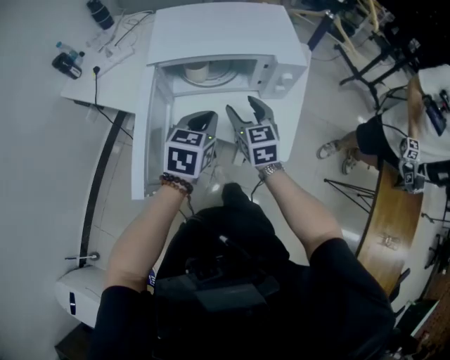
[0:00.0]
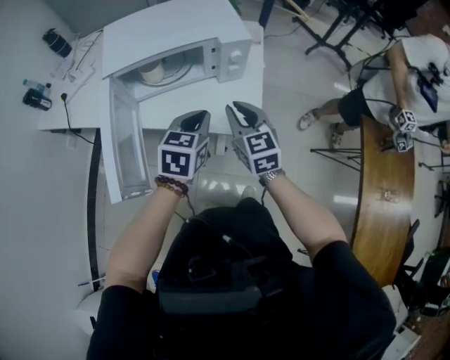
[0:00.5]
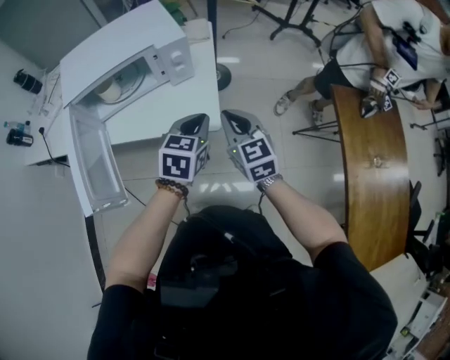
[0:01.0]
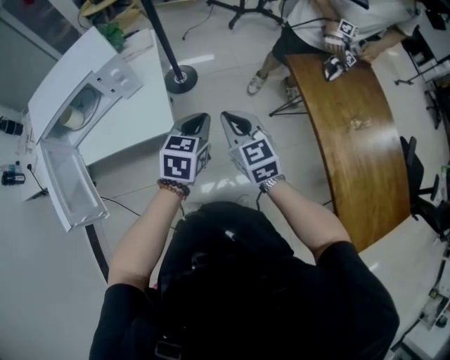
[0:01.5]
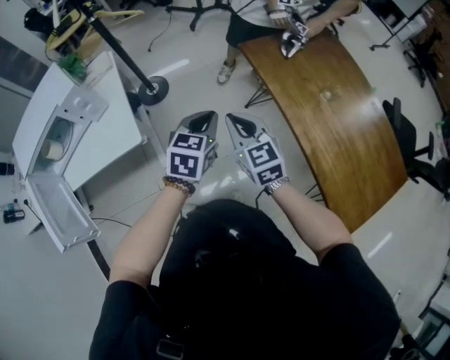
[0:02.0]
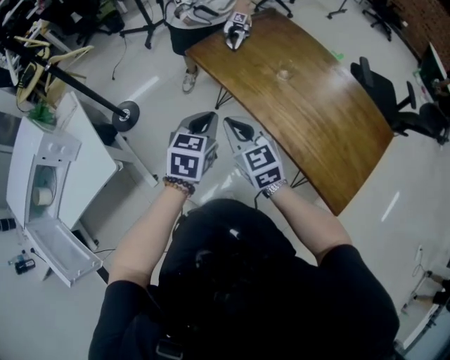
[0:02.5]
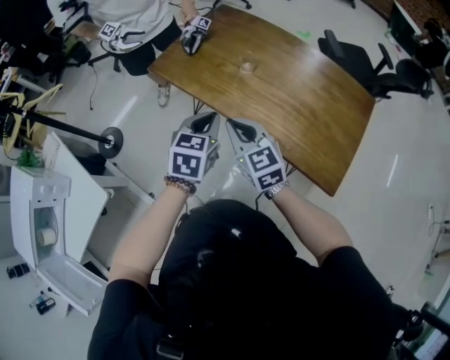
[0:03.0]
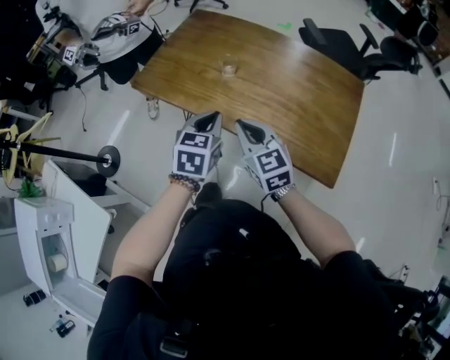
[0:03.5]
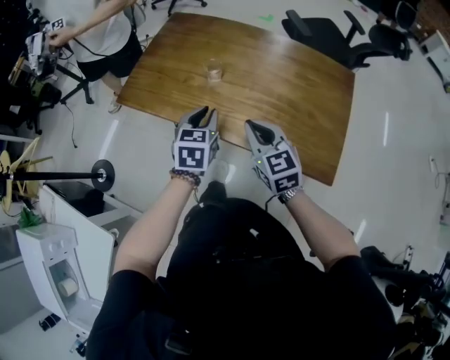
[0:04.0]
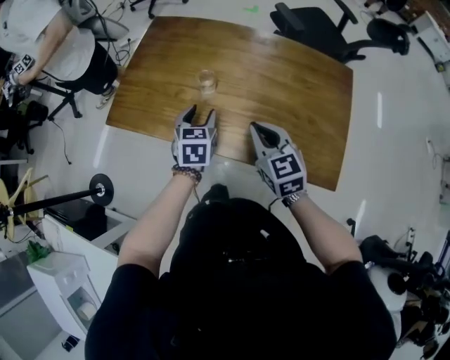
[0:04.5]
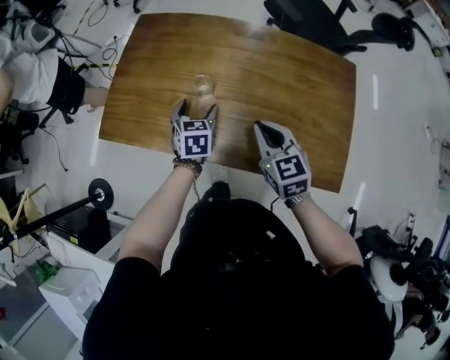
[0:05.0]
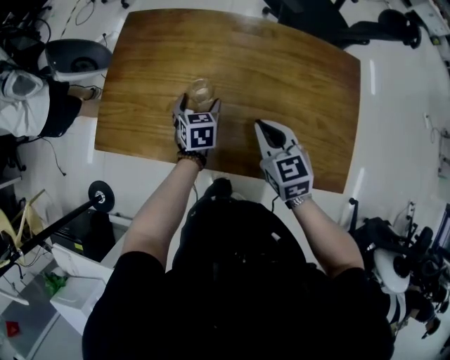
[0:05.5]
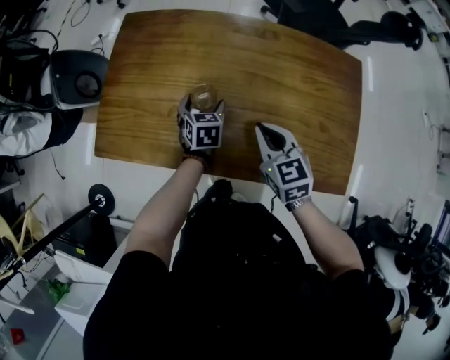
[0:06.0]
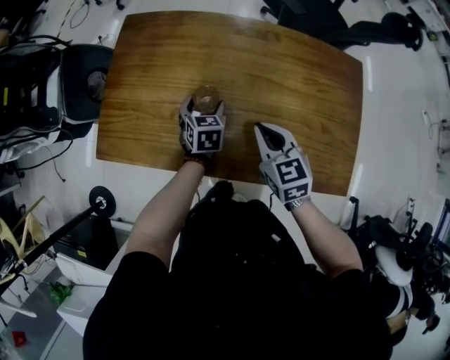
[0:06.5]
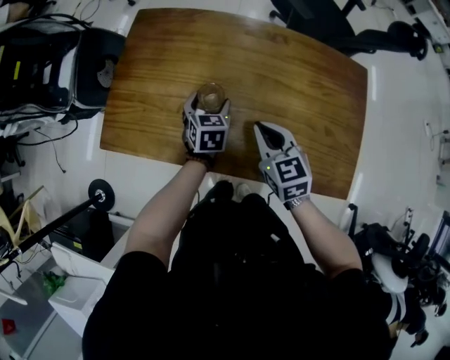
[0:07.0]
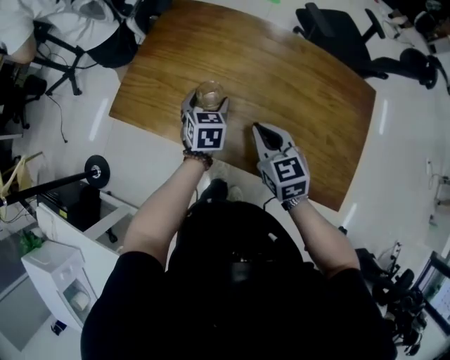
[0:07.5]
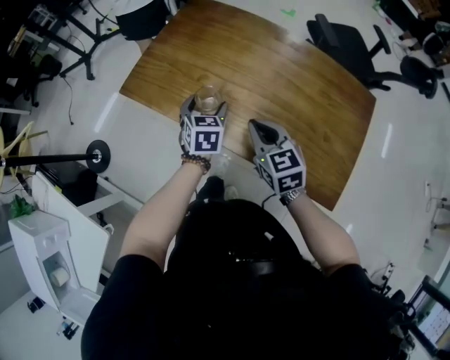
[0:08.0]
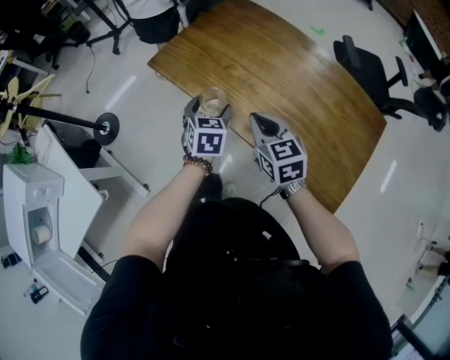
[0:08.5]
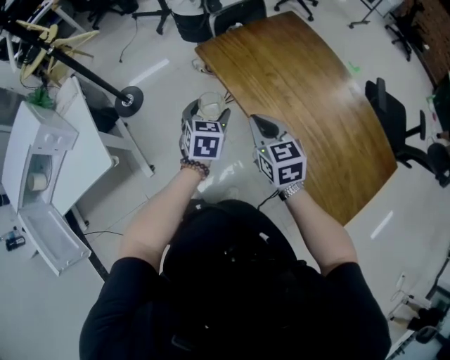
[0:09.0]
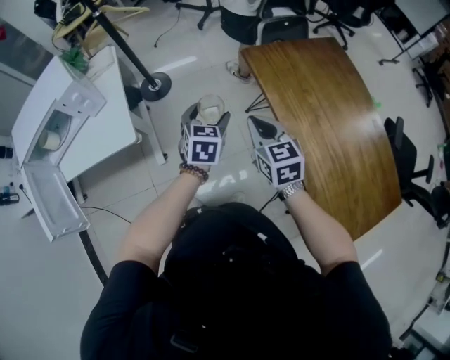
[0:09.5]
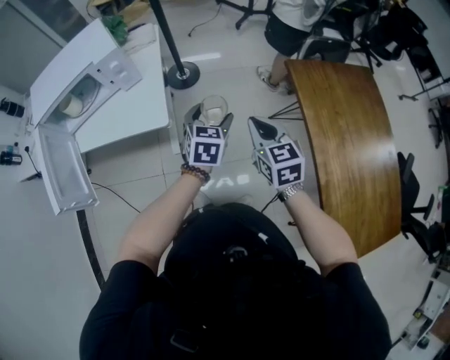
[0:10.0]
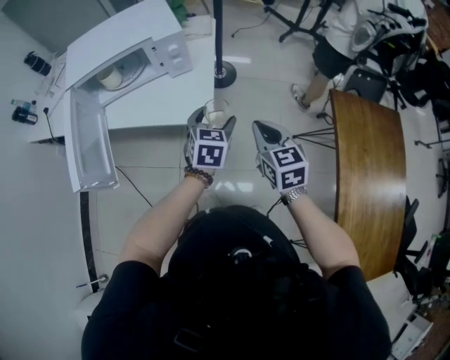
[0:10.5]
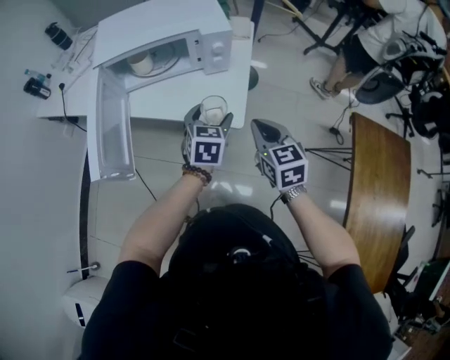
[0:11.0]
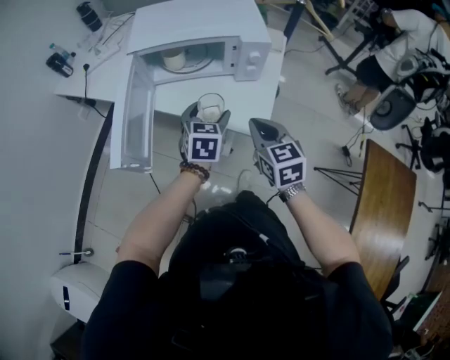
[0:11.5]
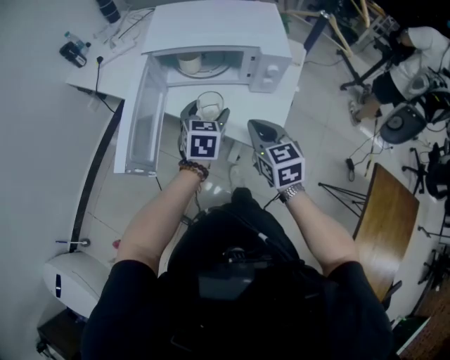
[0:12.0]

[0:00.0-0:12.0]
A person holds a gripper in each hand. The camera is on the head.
0:00.0 to 0:02.0: Both grippers are carried approximately 60 cm. The right gripper swivels about 30 degrees, and closes. The left gripper swivels approximately 50 degrees.
0:02.0 to 0:04.0: The left gripper ends up about 35 cm from where it was, and turns by some 40 degrees. Meanwhile the right gripper changes place by approximately 35 cm, and swivels roughly 50 degrees.
0:04.0 to 0:06.0: The left gripper moves forward and downward, approximately 25 cm, and opens its fingers. The right gripper shifts about 15 cm forward and downward.
0:06.0 to 0:08.0: The left gripper is displaced backward, to the left and upward by approximately 15 cm. The right gripper goes roughly 10 cm to the left and backward, and changes its angle by some 20 degrees.
0:08.0 to 0:10.0: The two grippers travel together, roughly 40 cm. The left gripper rotates approximately 50 degrees; the right gripper rotates approximately 50 degrees.
0:10.0 to 0:12.0: The two grippers travel together, about 40 cm. The left gripper turns by roughly 40 degrees, while the right gripper rotates approximately 40 degrees.

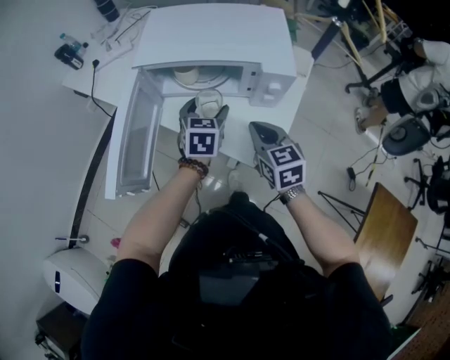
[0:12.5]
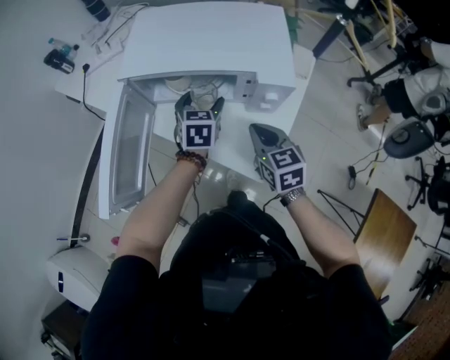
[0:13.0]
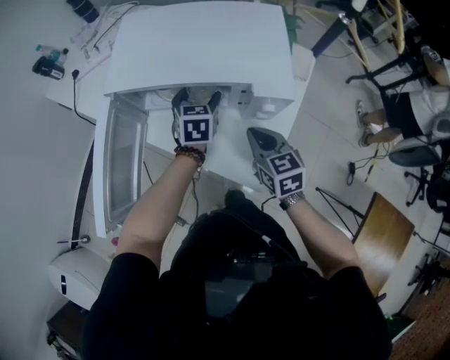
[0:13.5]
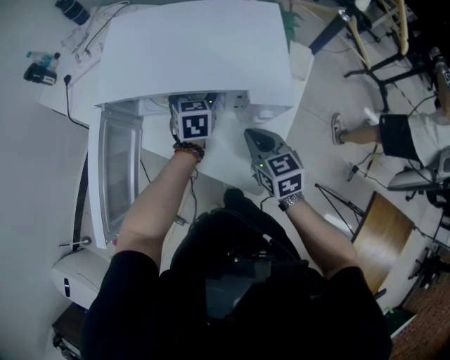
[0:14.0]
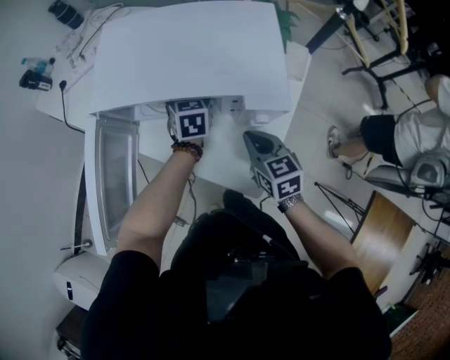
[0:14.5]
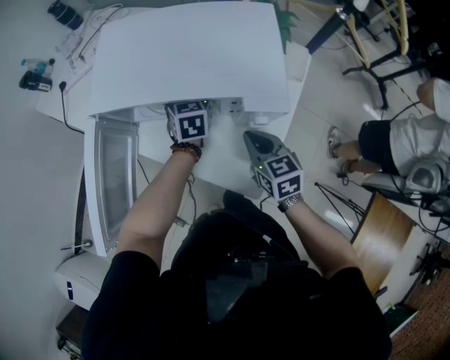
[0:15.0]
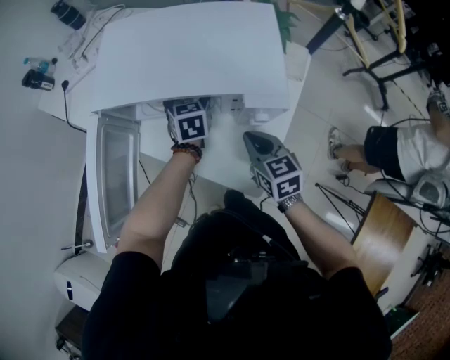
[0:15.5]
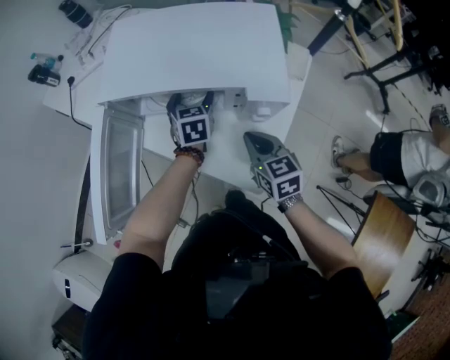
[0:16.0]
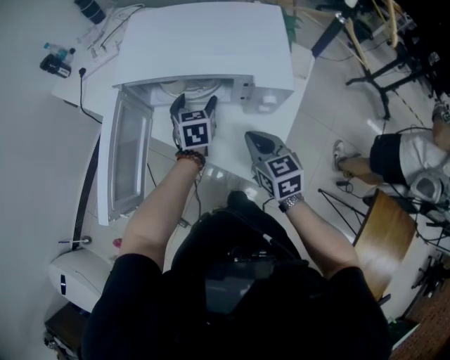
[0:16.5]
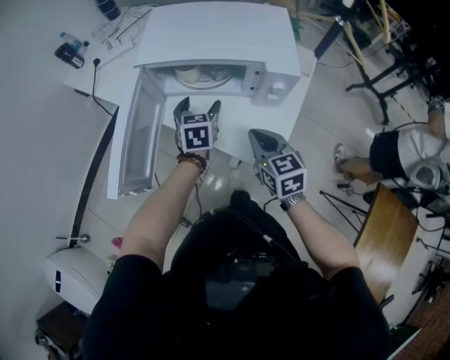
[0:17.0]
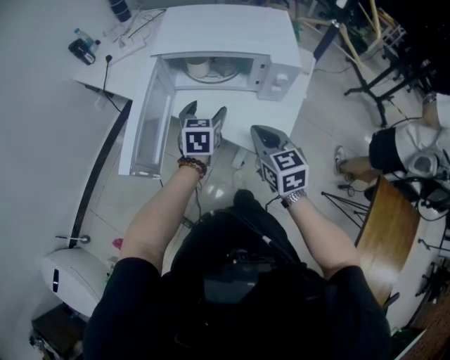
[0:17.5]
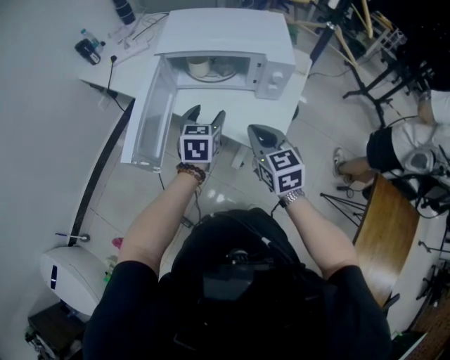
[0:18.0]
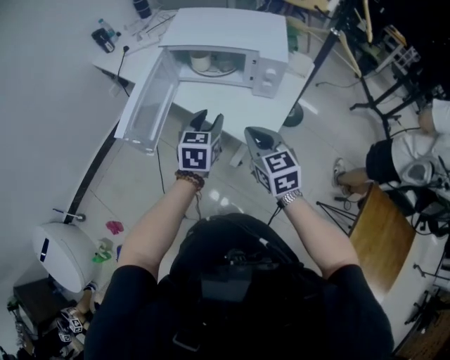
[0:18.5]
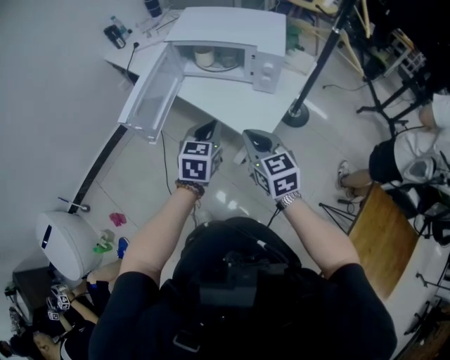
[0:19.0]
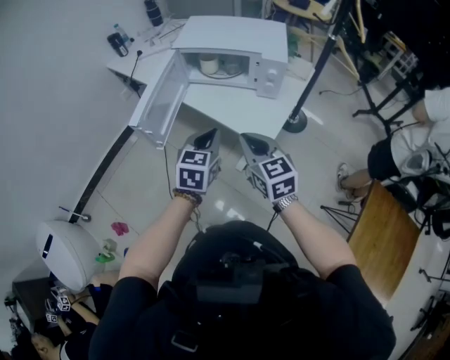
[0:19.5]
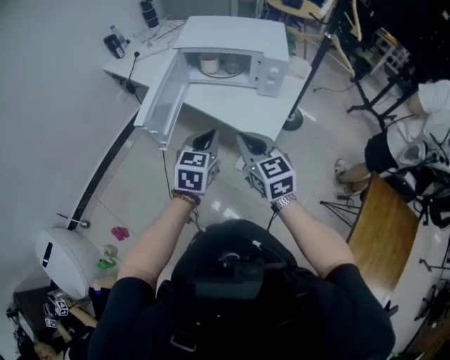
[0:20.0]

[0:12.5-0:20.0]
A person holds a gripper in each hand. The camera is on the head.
0:12.5 to 0:14.5: The left gripper goes approximately 15 cm forward and downward; the right gripper travels forward, downward and to the right by approximately 10 cm.
0:14.5 to 0:16.5: The left gripper moves backward, some 5 cm. Meanwhile the right gripper ends up about 5 cm from where it was.
0:16.5 to 0:18.0: The right gripper travels backward, upward and to the left by some 15 cm, while the left gripper travels backward and upward by about 20 cm.
0:18.0 to 0:20.0: The right gripper travels backward by some 10 cm, while the left gripper heads backward, covering approximately 15 cm, and closes up.

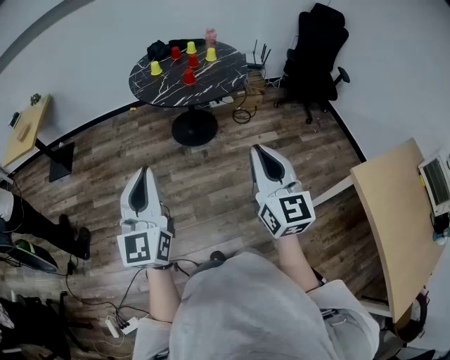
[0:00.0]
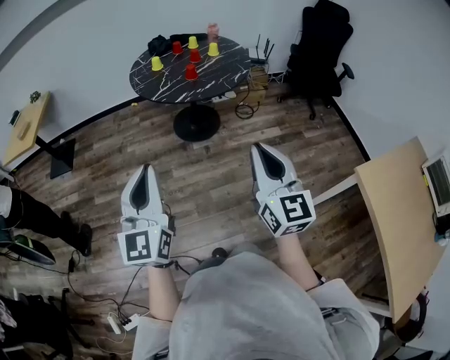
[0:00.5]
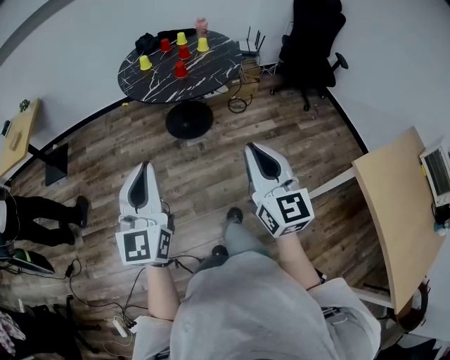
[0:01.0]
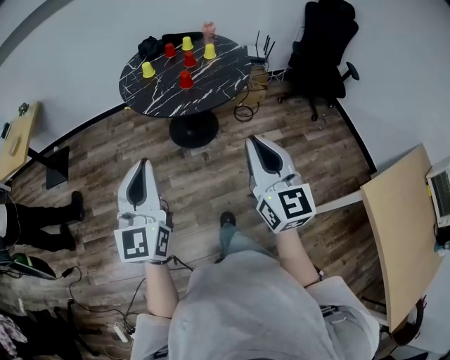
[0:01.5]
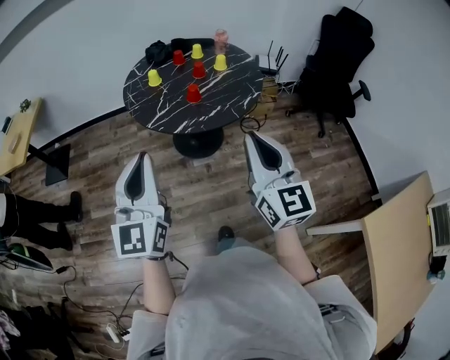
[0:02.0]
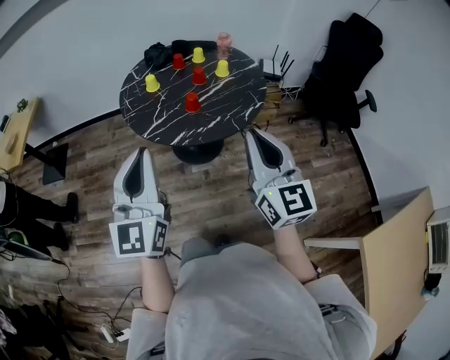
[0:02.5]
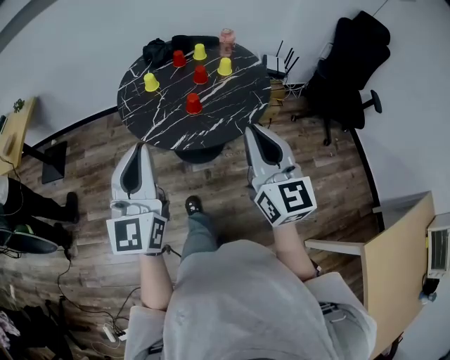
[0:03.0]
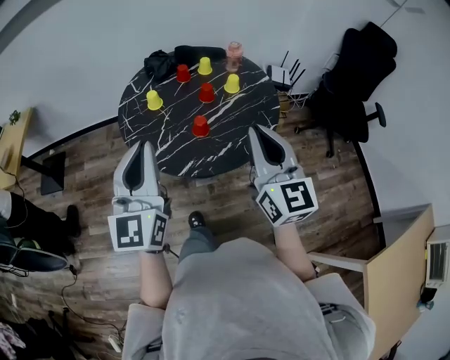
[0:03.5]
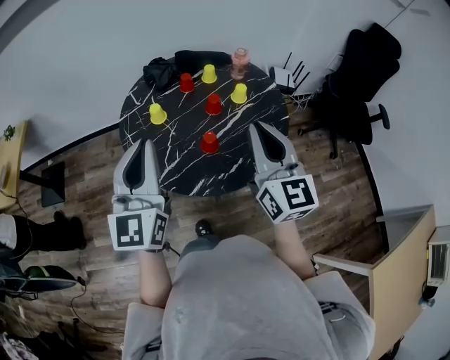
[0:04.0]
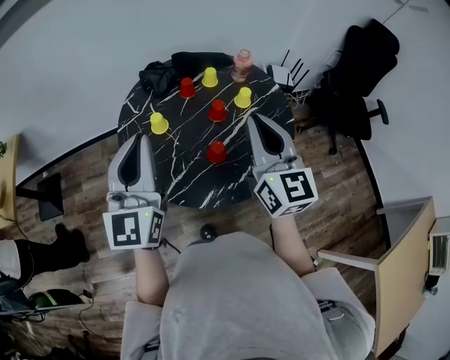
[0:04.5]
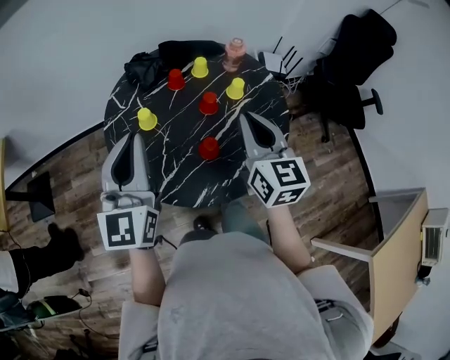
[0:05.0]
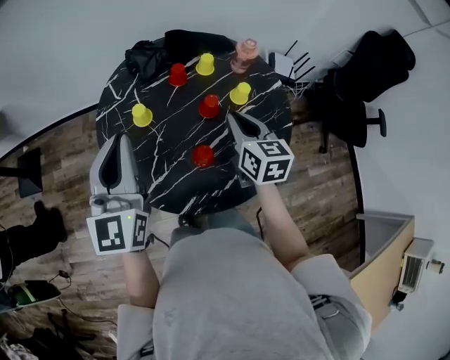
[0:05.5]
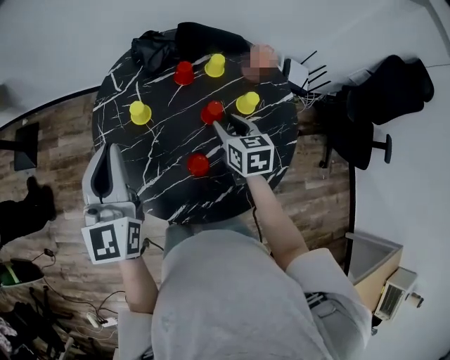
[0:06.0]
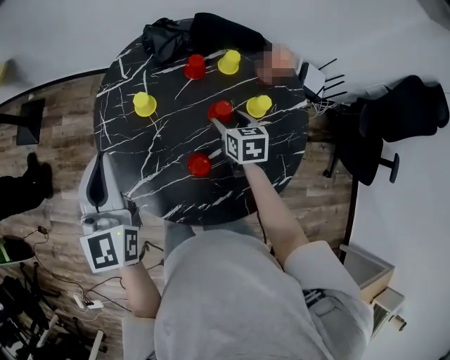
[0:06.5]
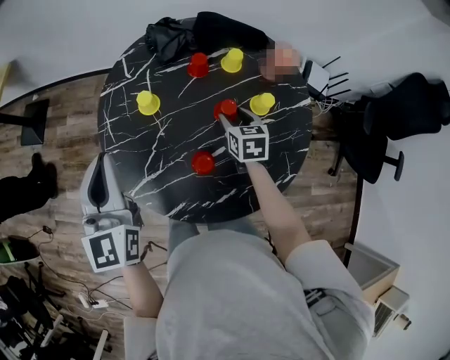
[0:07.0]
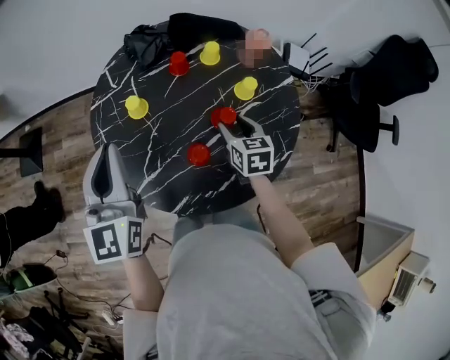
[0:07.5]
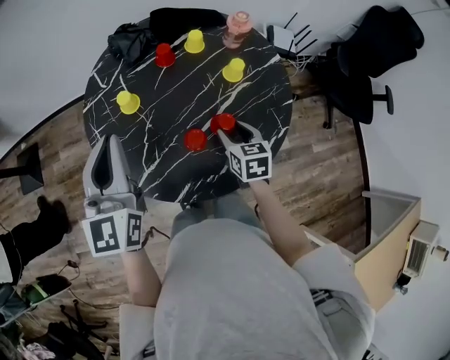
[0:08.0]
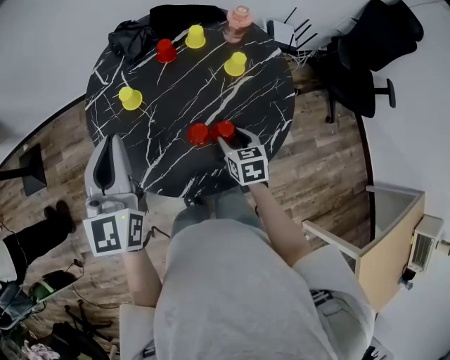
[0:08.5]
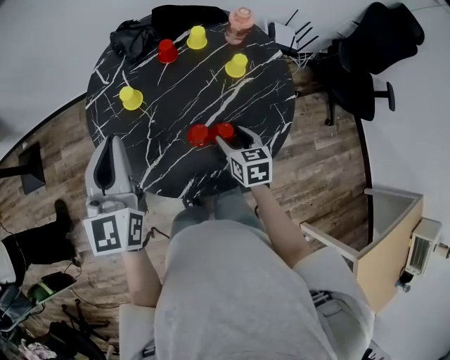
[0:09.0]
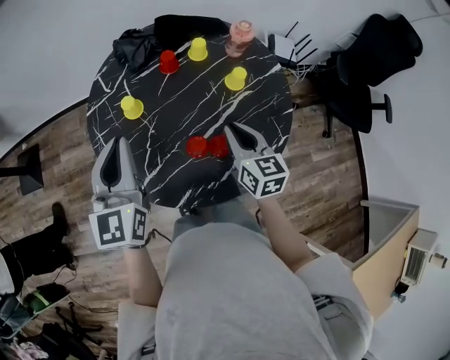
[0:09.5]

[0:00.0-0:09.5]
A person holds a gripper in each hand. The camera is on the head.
0:00.0 to 0:02.0: The two grippers go roughly 25 cm forward.
0:02.0 to 0:04.0: Both grippers move forward, approximately 35 cm.
0:04.0 to 0:05.5: The right gripper goes roughly 25 cm forward and downward, and rotates some 30 degrees. Meanwhile the left gripper is displaced forward and downward by about 15 cm.
0:05.5 to 0:07.5: The right gripper is displaced downward by roughly 15 cm, and opens its fingers.
0:07.5 to 0:09.5: The right gripper heads upward and backward, covering approximately 10 cm, and closes up.
